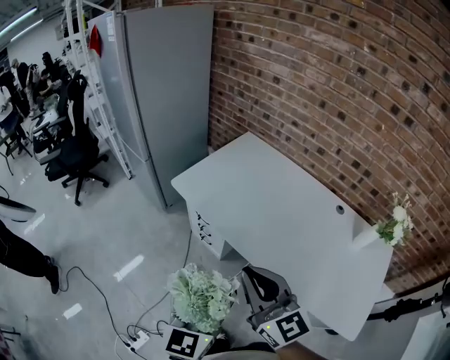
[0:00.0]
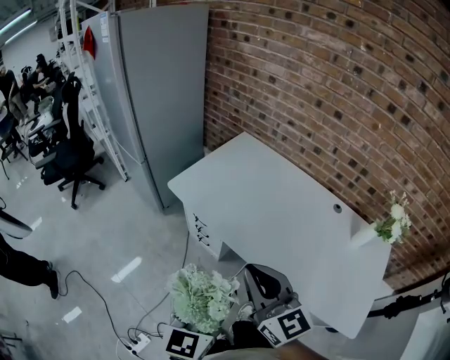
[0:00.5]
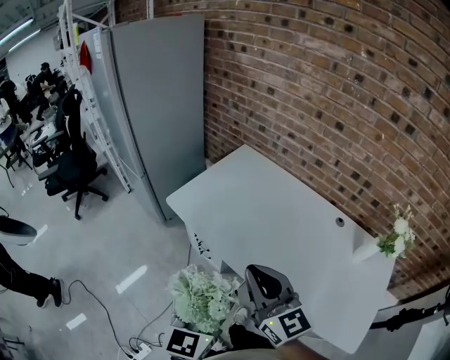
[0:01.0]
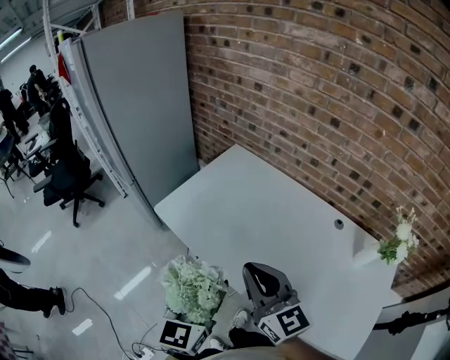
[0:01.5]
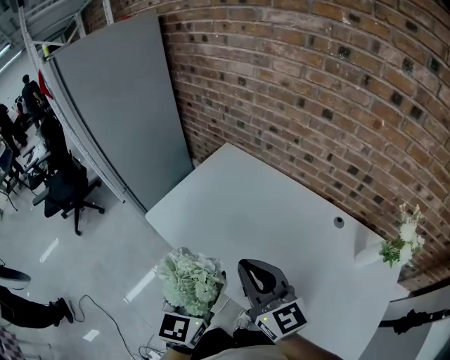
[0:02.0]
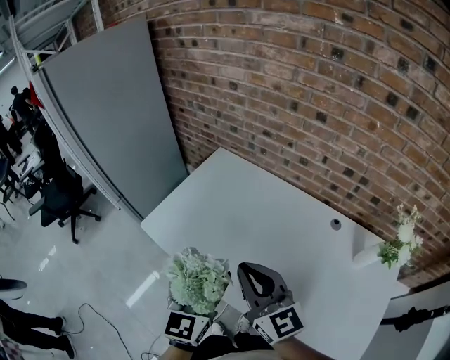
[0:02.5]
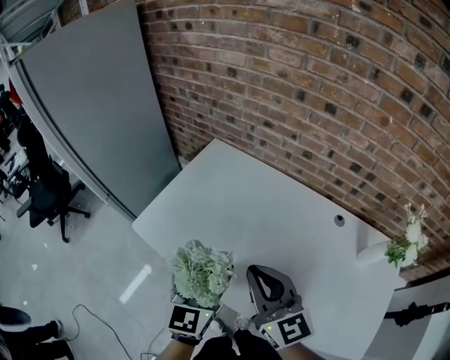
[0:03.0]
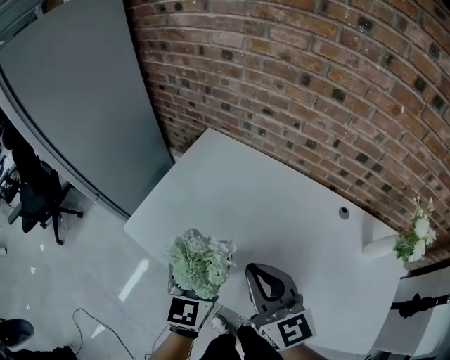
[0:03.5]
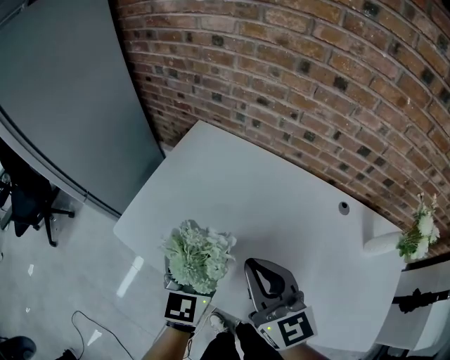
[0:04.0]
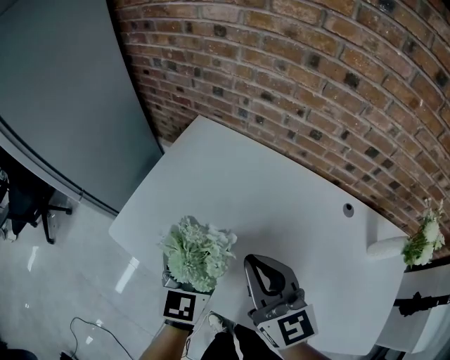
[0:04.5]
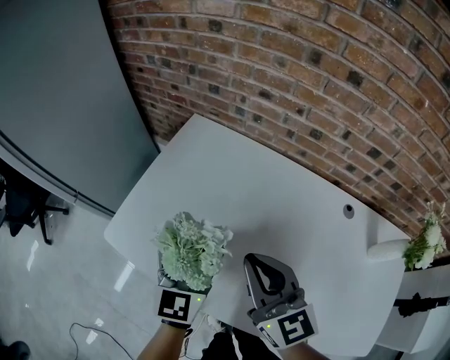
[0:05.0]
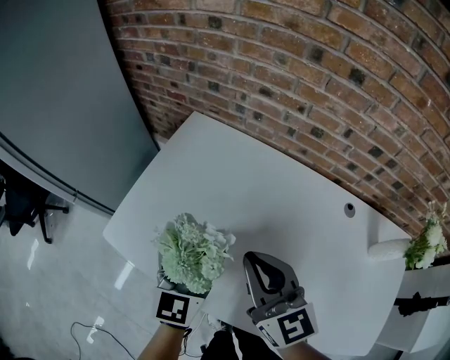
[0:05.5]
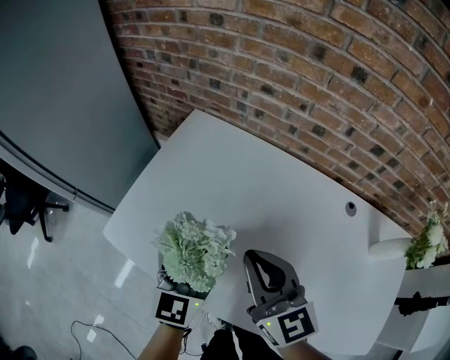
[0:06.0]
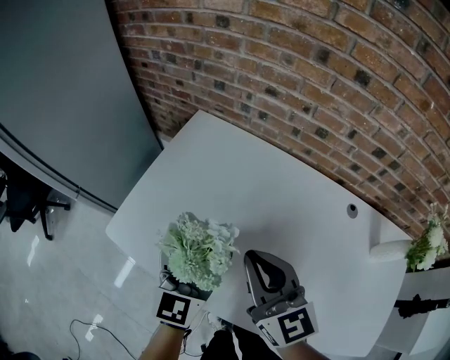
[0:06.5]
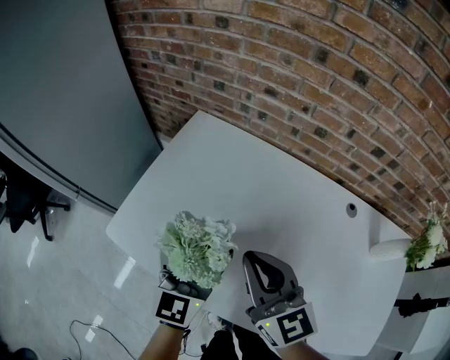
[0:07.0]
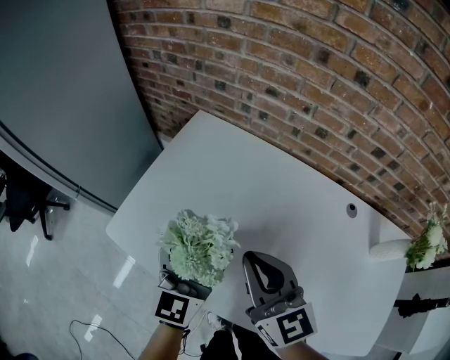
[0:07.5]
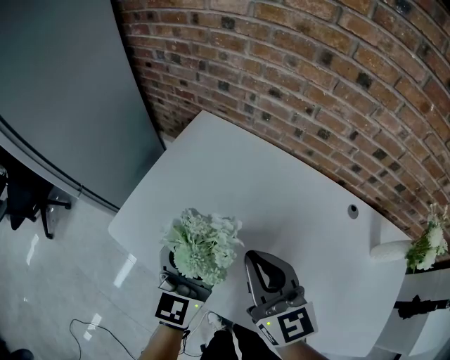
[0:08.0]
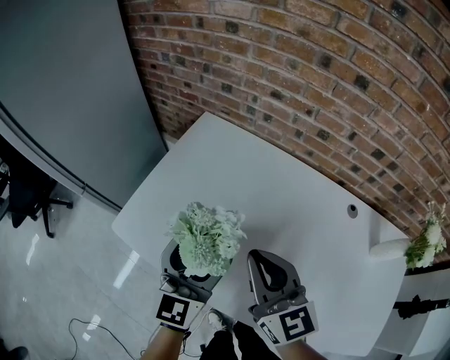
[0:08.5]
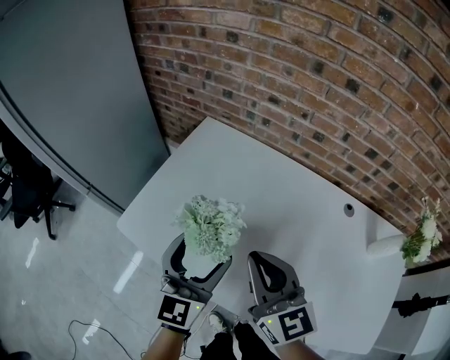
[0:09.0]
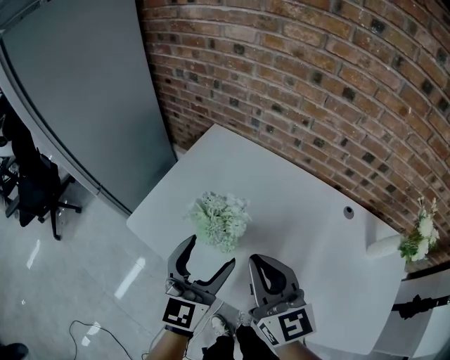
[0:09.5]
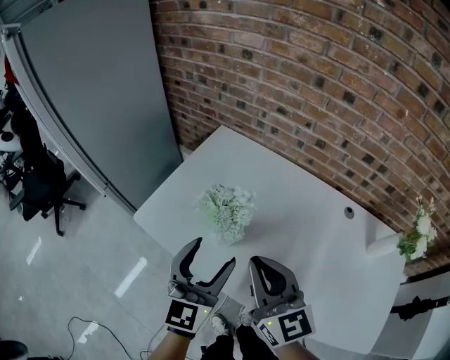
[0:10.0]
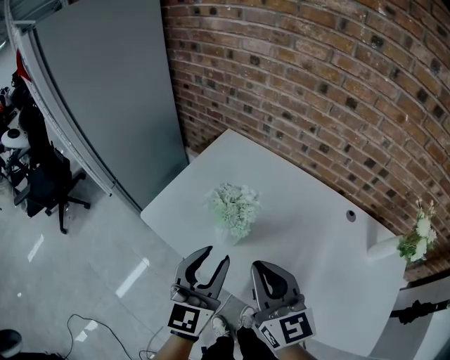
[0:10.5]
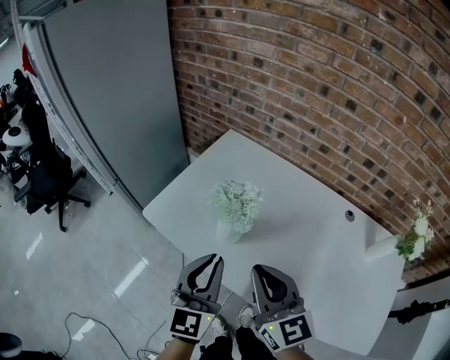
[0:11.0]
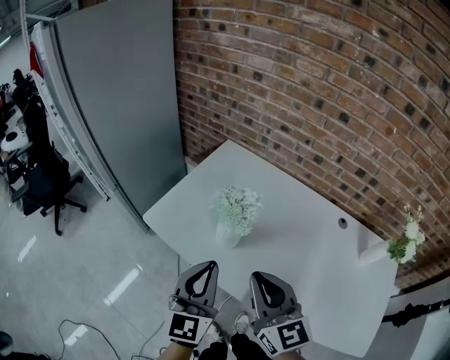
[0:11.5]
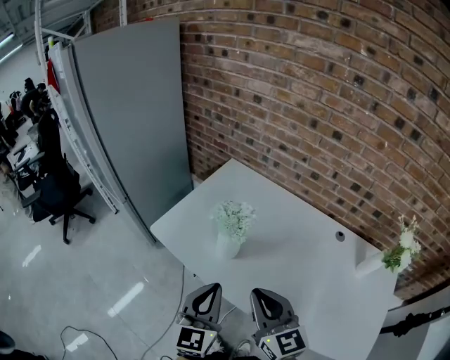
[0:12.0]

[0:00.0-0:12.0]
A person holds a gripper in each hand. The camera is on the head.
0:00.0 to 0:02.0: Both grippers travel together forward and to the right, approximately 20 cm.
0:02.0 to 0:04.0: The right gripper heads forward and downward, covering some 15 cm. Meanwhile the left gripper shifts some 20 cm forward and downward.
0:04.0 to 0:06.0: The right gripper moves forward, roughly 5 cm.
0:06.0 to 0:08.0: The grippers move only a little.
0:08.0 to 0:10.0: Both grippers travel together backward and upward, roughly 10 cm.
0:10.0 to 0:12.0: The two grippers go some 10 cm backward. The left gripper closes up.

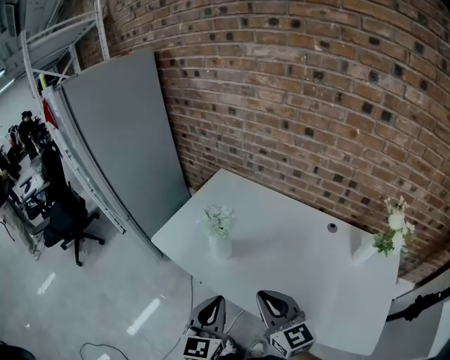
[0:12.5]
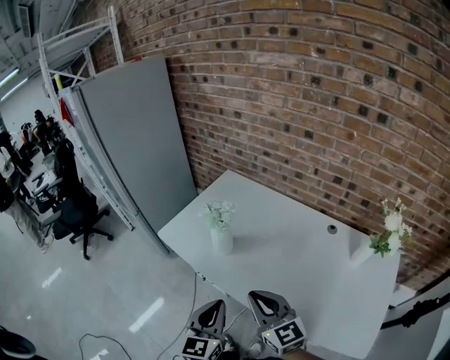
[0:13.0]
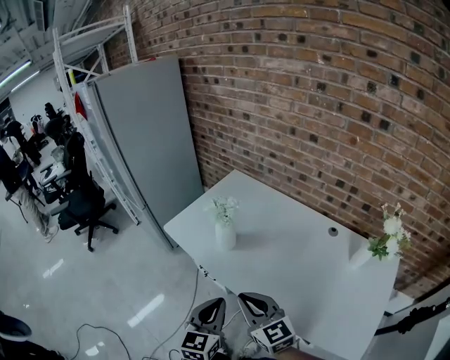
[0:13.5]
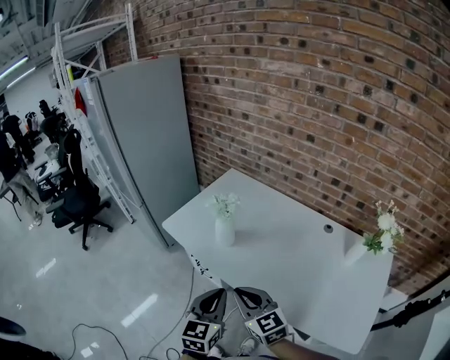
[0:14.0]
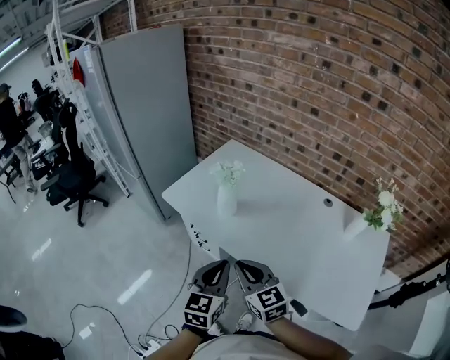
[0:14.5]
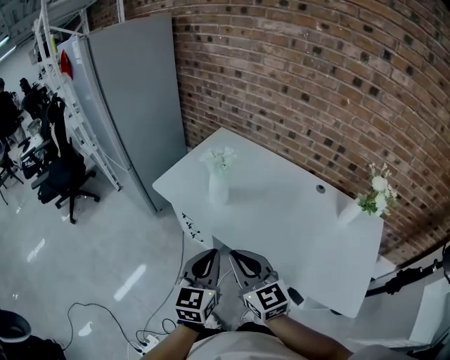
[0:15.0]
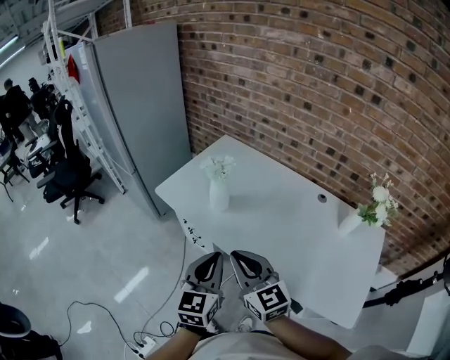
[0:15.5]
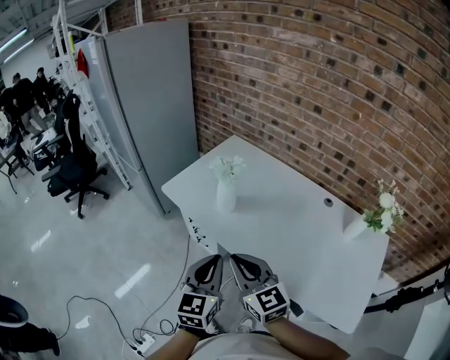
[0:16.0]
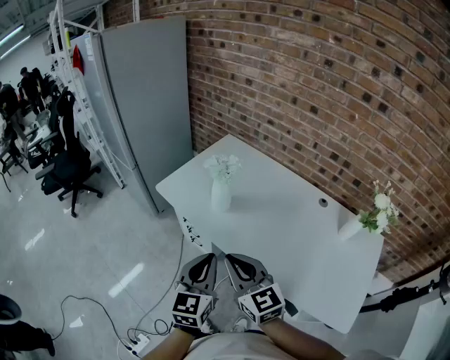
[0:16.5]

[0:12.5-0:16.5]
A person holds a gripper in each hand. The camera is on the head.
0:12.5 to 0:14.5: The right gripper heads to the left and backward, covering about 10 cm; the left gripper is displaced backward by approximately 10 cm.
0:14.5 to 0:16.5: There are only small adjustments of the grippers.

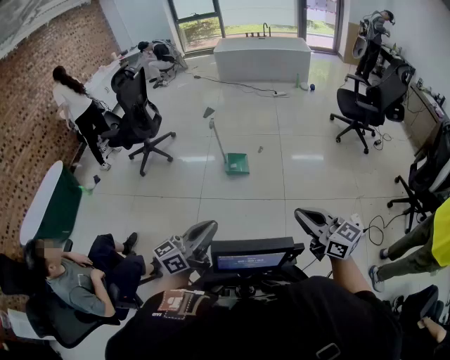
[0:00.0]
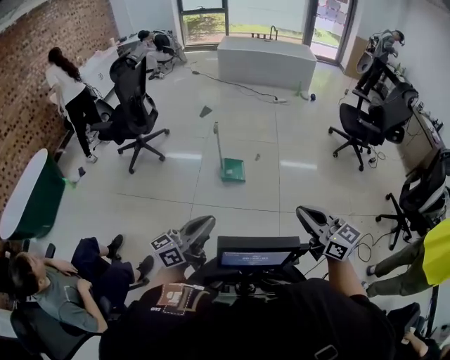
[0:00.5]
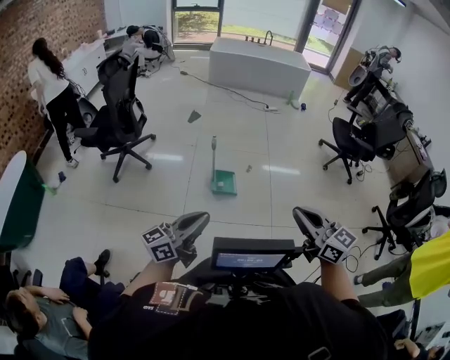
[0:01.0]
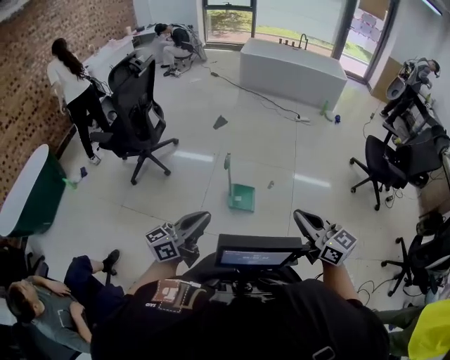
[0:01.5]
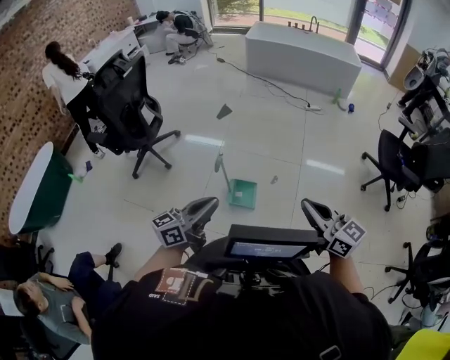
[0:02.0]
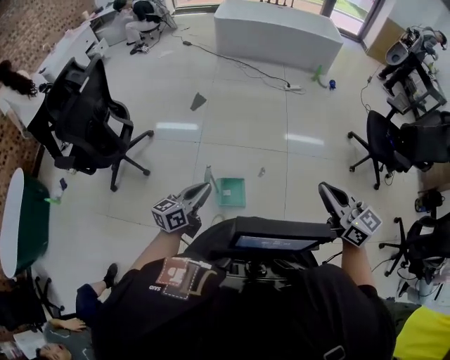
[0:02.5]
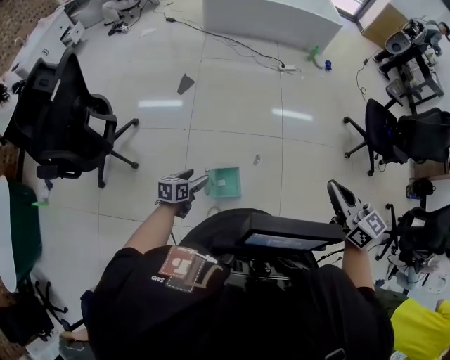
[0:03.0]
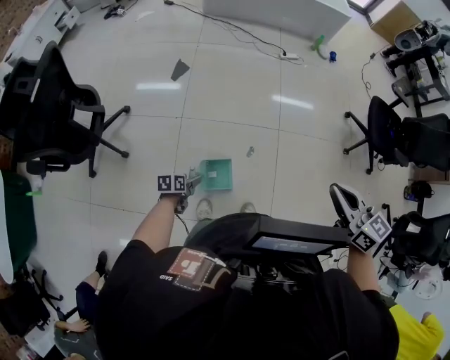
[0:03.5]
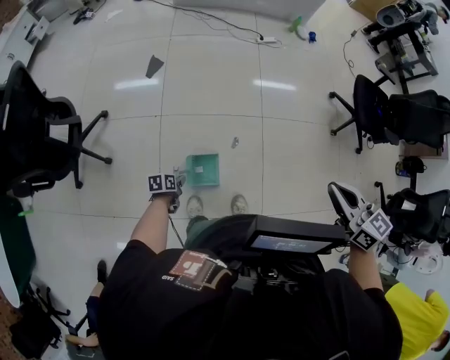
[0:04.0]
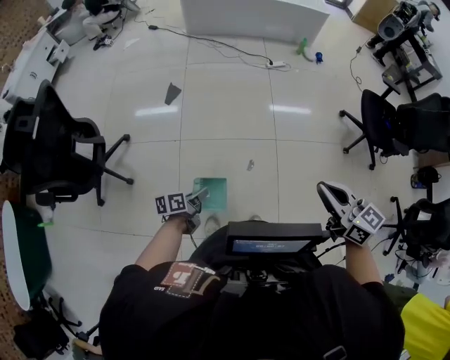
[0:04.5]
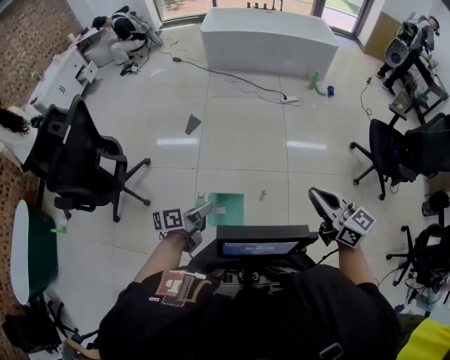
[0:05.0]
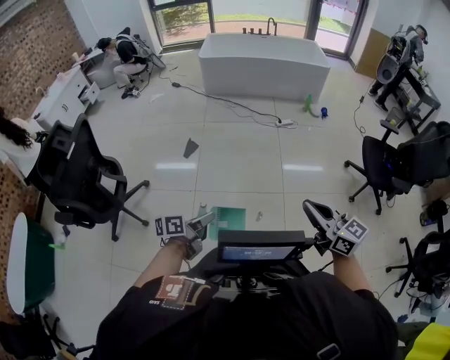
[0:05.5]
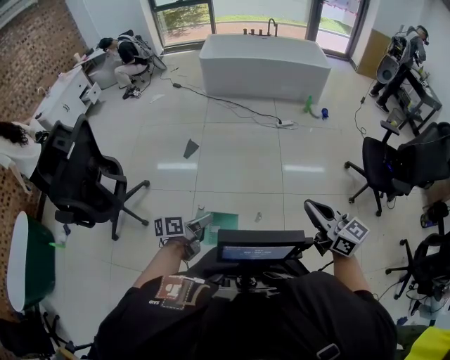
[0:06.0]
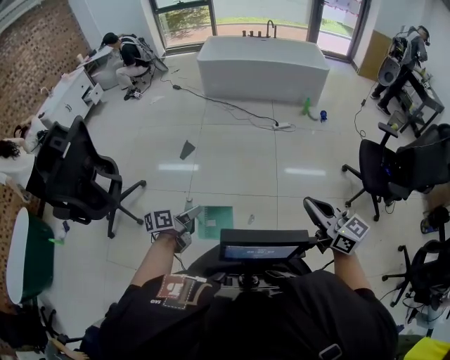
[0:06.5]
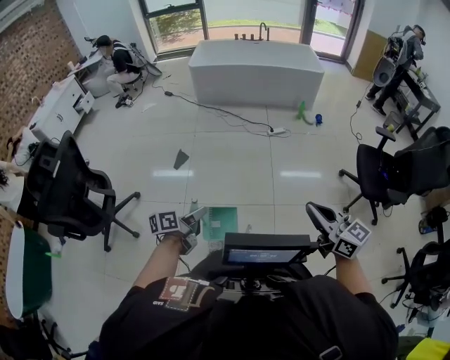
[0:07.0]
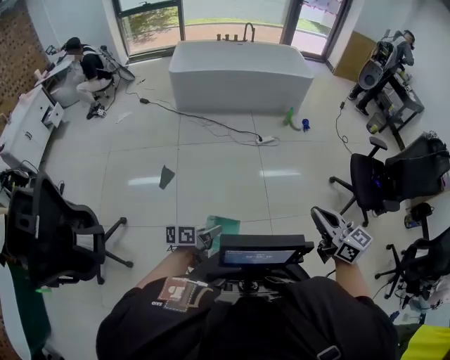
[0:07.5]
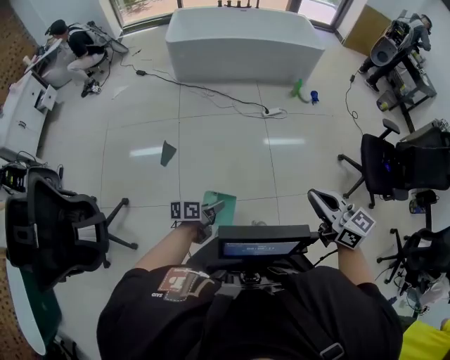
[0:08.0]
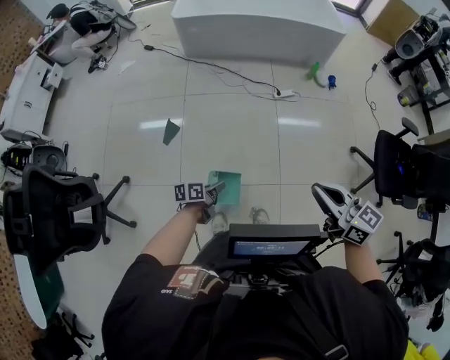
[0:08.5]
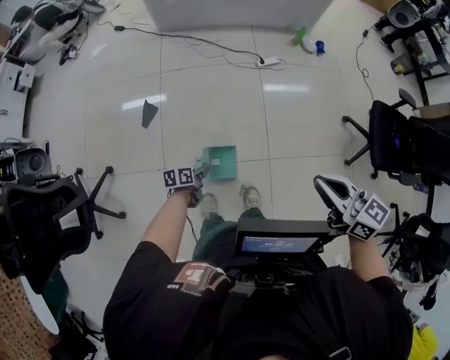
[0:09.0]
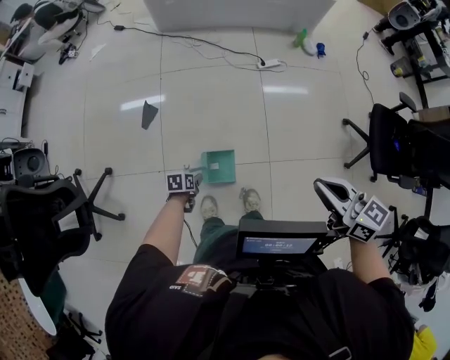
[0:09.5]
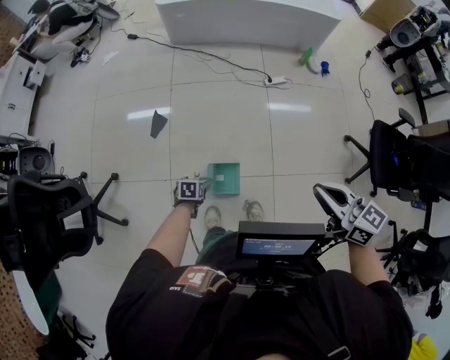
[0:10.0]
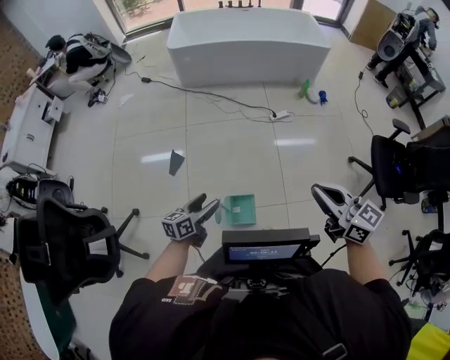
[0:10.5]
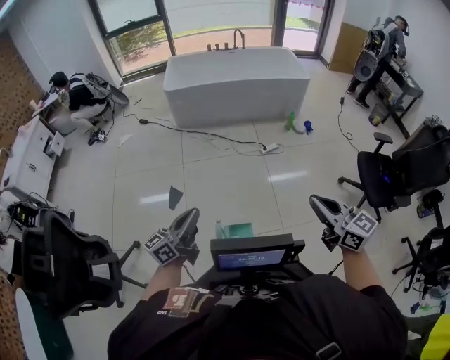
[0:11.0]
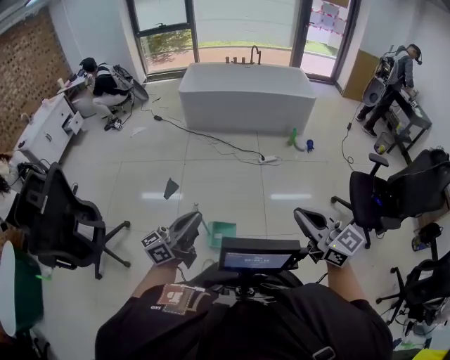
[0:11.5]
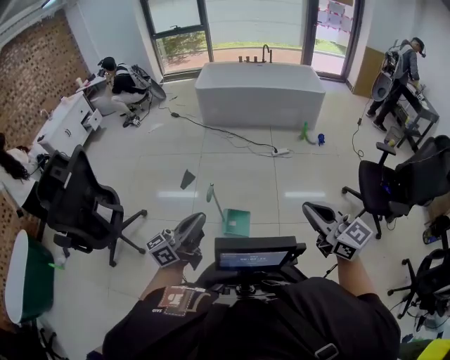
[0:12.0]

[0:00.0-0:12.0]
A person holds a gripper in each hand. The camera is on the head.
0:00.0 to 0:02.0: The pair of grippers is taken forward, about 1 m.
0:02.0 to 0:04.0: Both grippers are carried forward, about 70 cm. The left gripper is displaced downward by some 60 cm, angles its fingers downward, by approximately 60 degrees, and opens and closes again. Meanwhile the right gripper swivels roughly 30 degrees.
0:04.0 to 0:06.0: The left gripper moves upward, some 40 cm, and tilts its fingers some 30 degrees upward. The right gripper travels upward and backward by about 20 cm, and changes its angle by some 20 degrees.
0:06.0 to 0:08.0: The two grippers travel together, forward, approximately 60 cm.
0:08.0 to 0:10.0: The left gripper shifts about 30 cm downward and forward, tips its fingers downward by some 40 degrees, and opens. The right gripper travels forward, downward and to the right by about 25 cm.
0:10.0 to 0:12.0: The pair of grippers is taken backward, roughly 70 cm. The right gripper changes its angle by about 30 degrees. Meanwhile the left gripper shifts about 60 cm upward, tips its fingers upward by approximately 80 degrees, and closes.
